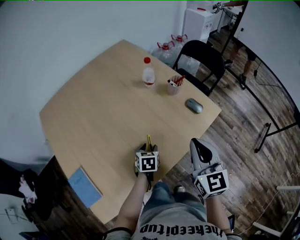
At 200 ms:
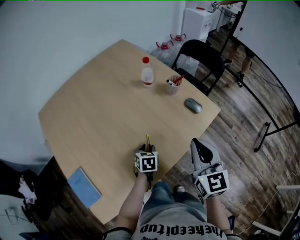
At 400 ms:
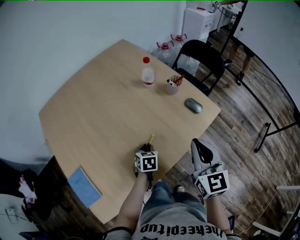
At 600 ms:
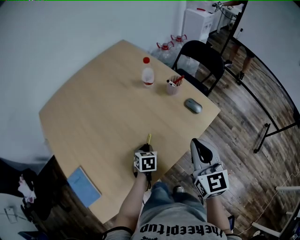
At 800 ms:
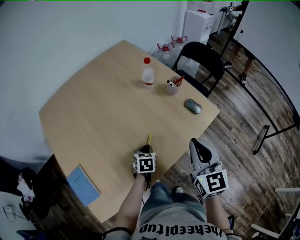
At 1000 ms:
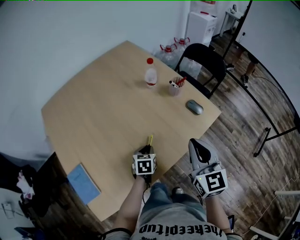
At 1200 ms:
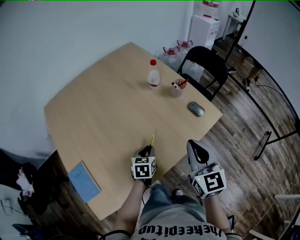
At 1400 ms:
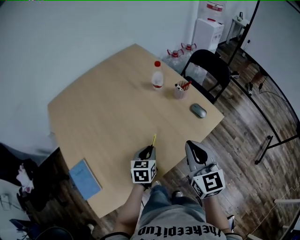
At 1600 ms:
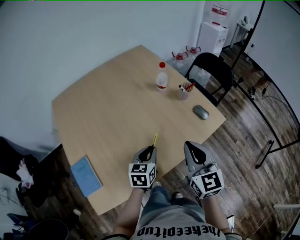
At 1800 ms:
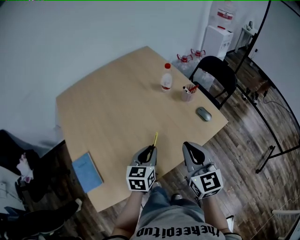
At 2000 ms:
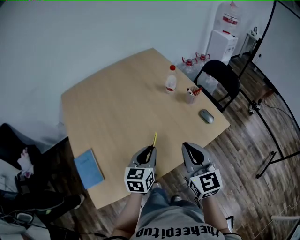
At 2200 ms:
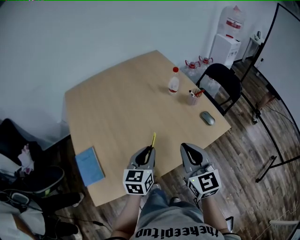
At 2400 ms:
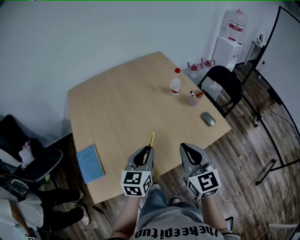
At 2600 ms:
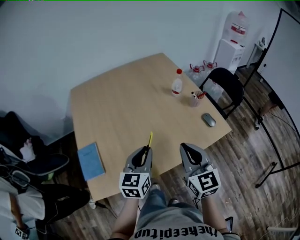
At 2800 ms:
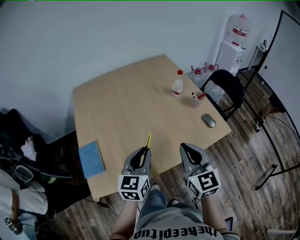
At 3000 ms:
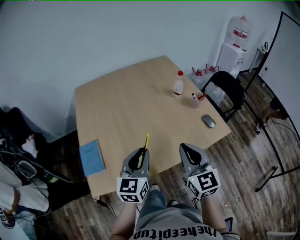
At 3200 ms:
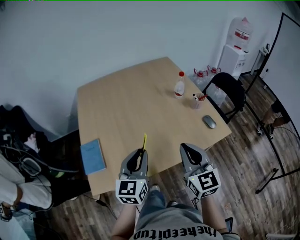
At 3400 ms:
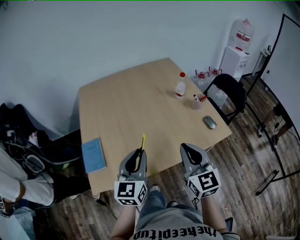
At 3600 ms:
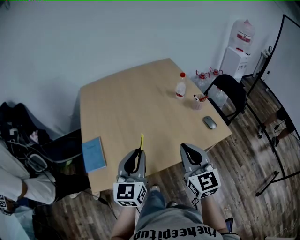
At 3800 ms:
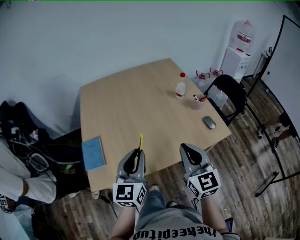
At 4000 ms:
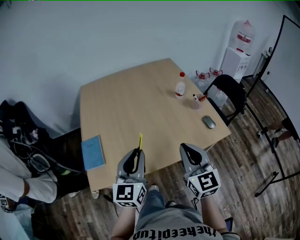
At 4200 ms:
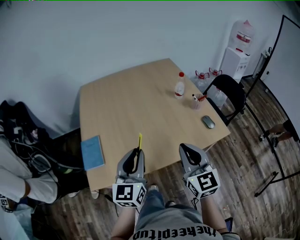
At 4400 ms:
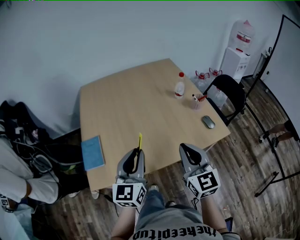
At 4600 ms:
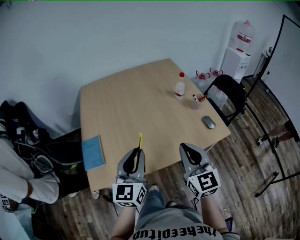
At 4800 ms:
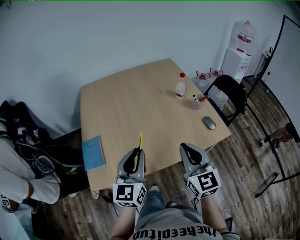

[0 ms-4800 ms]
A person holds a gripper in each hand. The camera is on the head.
0 ms to 1600 ms: The left gripper goes some 15 cm upward and backward, rotates some 20 degrees, and closes.
1600 ms to 3200 ms: The right gripper changes place by some 5 cm; the left gripper travels upward, backward and to the left by some 20 cm, and turns by roughly 30 degrees.
3200 ms to 4800 ms: The grippers make only small movements.

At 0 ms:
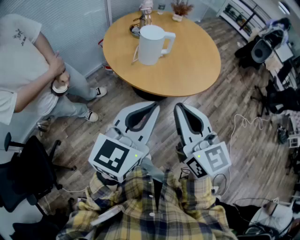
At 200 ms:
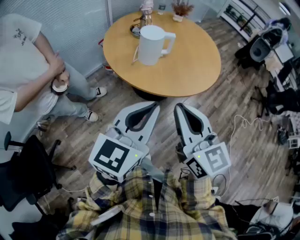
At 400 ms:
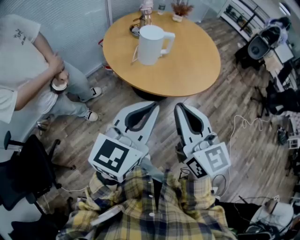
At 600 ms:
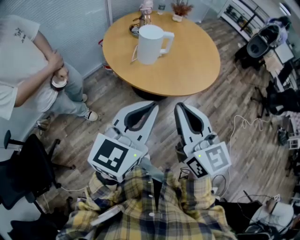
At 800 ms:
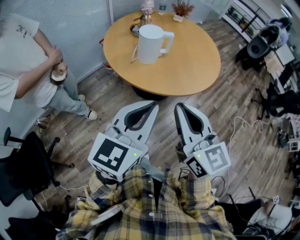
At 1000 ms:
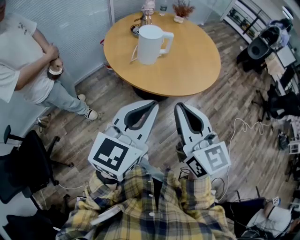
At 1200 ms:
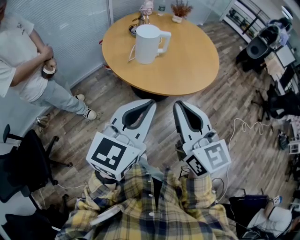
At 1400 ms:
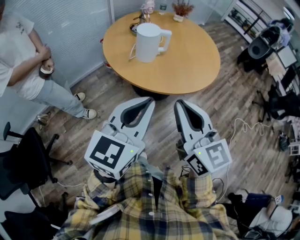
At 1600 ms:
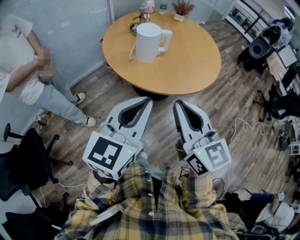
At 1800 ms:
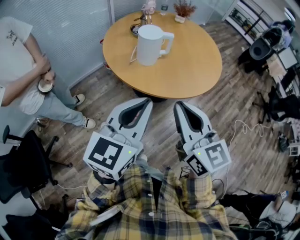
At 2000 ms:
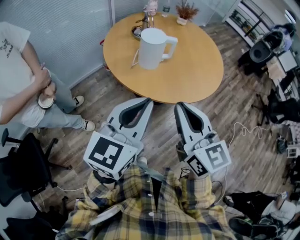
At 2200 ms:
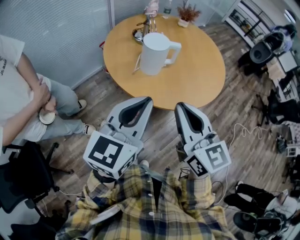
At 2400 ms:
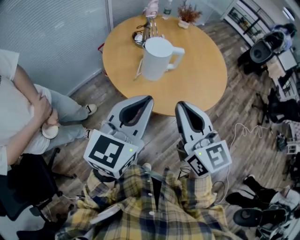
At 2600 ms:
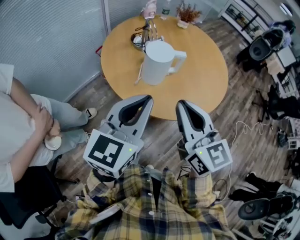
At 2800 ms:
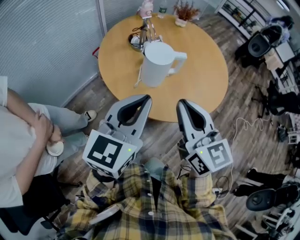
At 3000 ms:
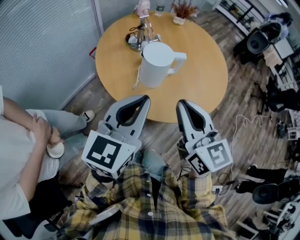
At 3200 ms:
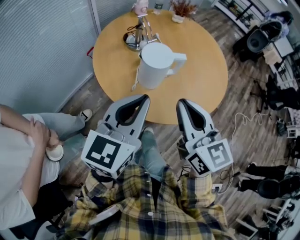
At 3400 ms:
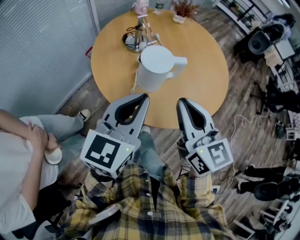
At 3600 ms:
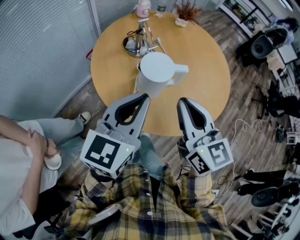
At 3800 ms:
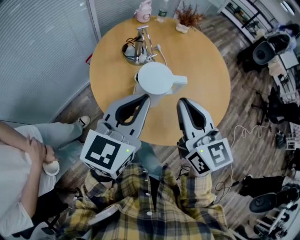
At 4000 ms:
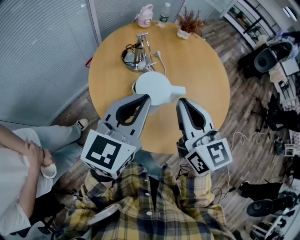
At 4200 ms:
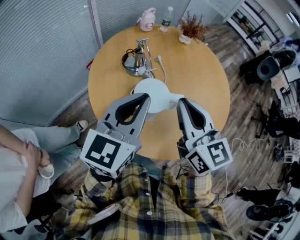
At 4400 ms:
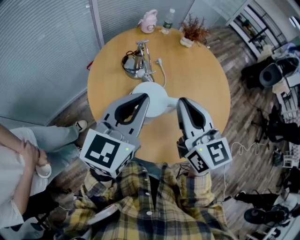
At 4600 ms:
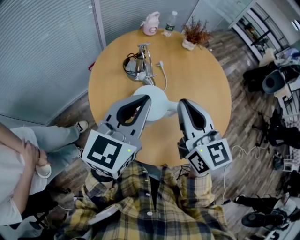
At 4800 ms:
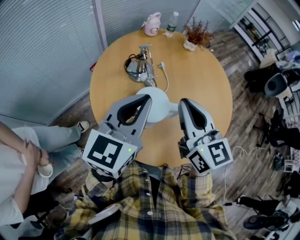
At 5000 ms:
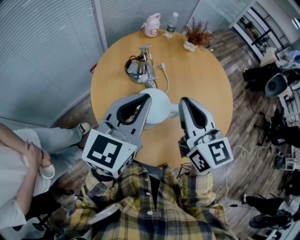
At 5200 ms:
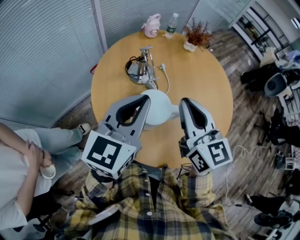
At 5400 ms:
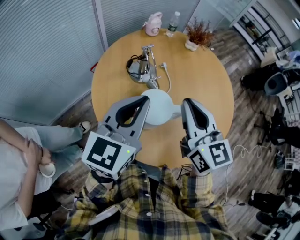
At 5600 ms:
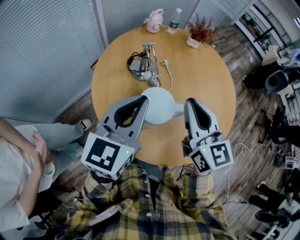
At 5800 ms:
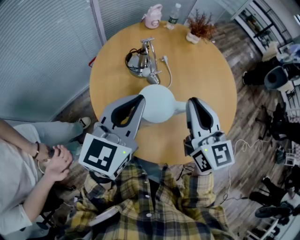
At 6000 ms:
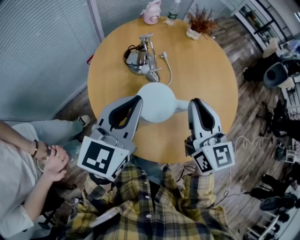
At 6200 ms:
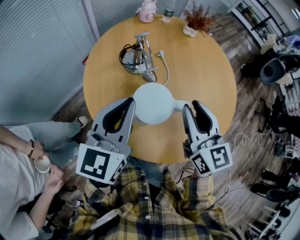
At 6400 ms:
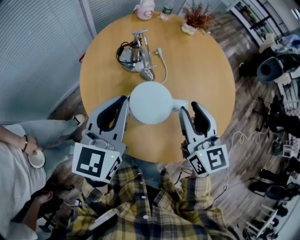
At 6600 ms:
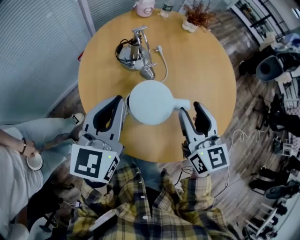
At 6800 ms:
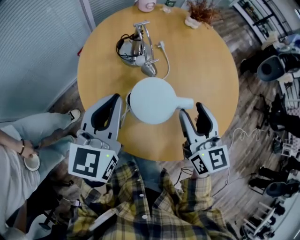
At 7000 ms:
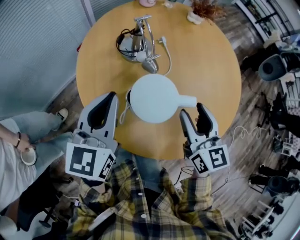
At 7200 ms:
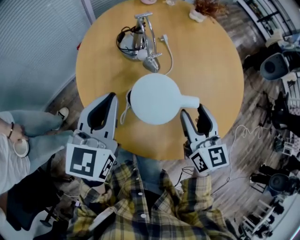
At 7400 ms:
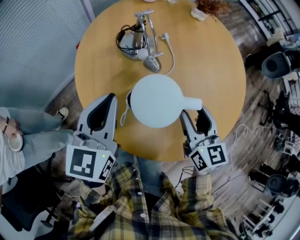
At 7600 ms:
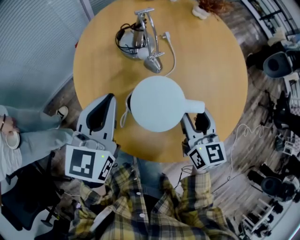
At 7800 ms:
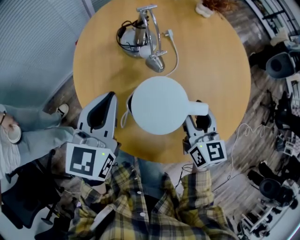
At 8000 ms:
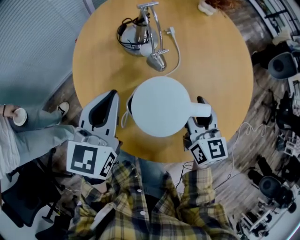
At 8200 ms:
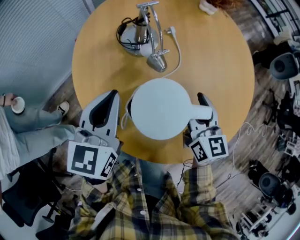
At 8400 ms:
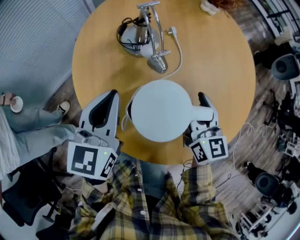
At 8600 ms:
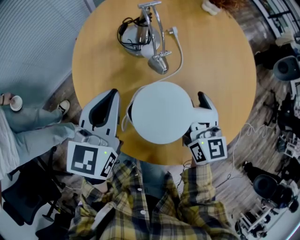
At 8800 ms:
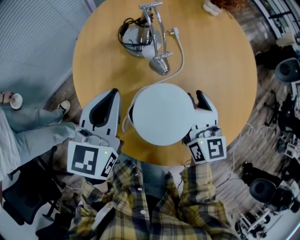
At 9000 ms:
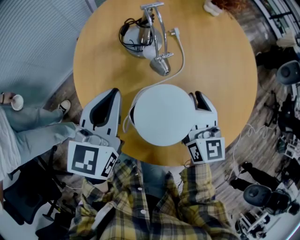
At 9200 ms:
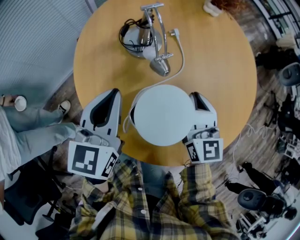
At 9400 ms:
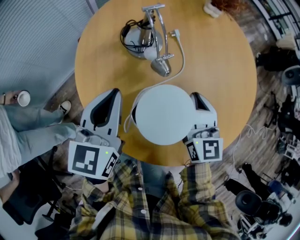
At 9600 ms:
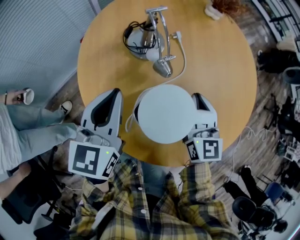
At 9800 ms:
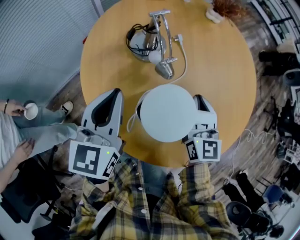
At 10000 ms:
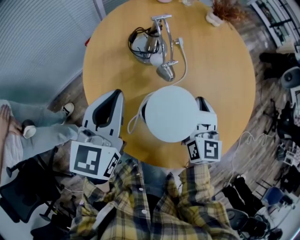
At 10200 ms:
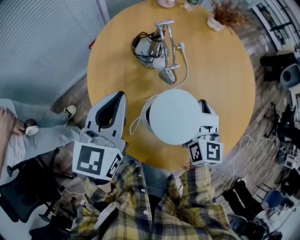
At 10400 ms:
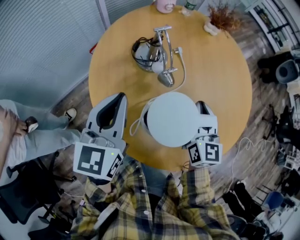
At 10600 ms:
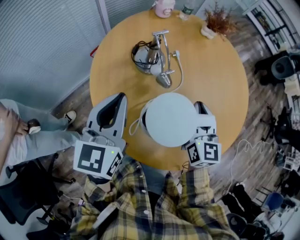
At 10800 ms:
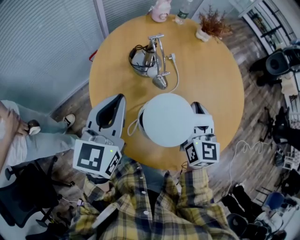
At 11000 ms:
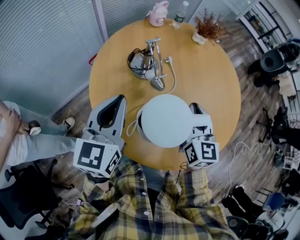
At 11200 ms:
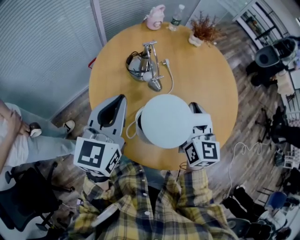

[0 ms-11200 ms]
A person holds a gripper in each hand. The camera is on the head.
0 ms to 1600 ms: The grippers stay close to where they were, moving slightly.
1600 ms to 3200 ms: The right gripper moves forward, roughly 20 cm, while the left gripper moves forward and to the left, some 25 cm.
3200 ms to 4800 ms: Both grippers move forward, some 20 cm.
4800 ms to 6400 ms: The right gripper moves downward, about 10 cm, and opens its fingers. Meanwhile the left gripper is displaced downward and to the left by about 10 cm.
6400 ms to 8000 ms: Both grippers move downward, approximately 10 cm. The right gripper opens up.
8000 ms to 9600 ms: The right gripper closes its fingers.
9600 ms to 11200 ms: Both grippers move upward, approximately 10 cm.

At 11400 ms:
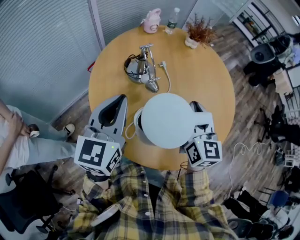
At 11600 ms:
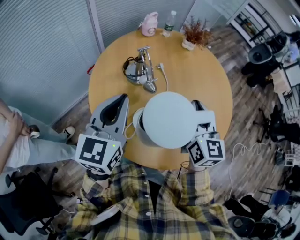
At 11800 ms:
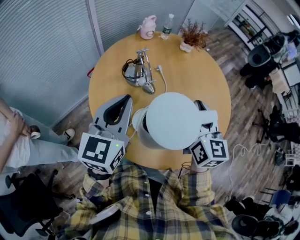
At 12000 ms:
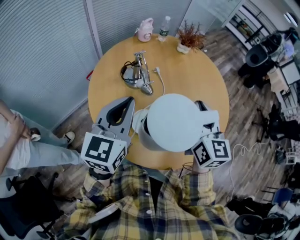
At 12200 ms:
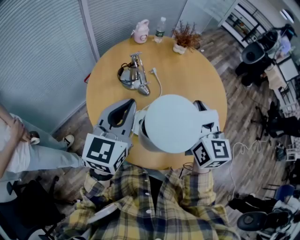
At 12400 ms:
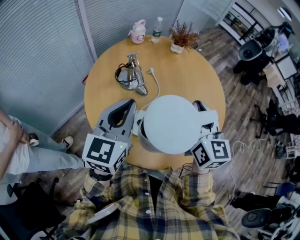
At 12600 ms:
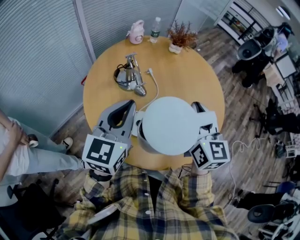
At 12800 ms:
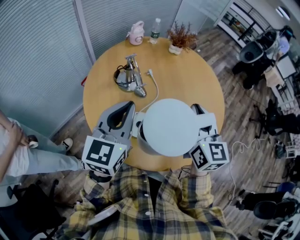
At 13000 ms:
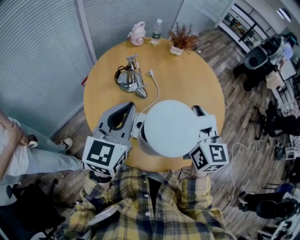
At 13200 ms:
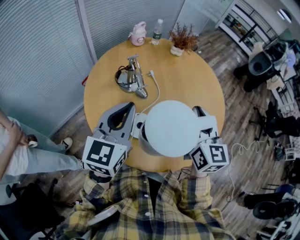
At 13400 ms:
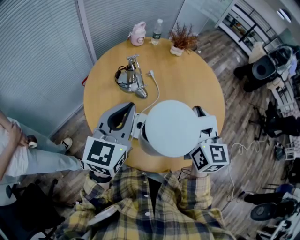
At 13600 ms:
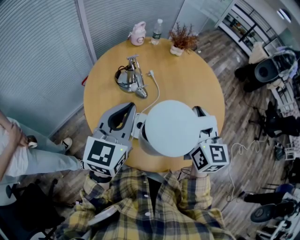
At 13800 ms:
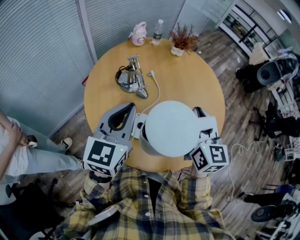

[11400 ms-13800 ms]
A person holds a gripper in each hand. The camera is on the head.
11400 ms to 12600 ms: The left gripper shifts approximately 5 cm to the right, while the right gripper travels upward by roughly 5 cm.
12600 ms to 13800 ms: Neither gripper changes place.

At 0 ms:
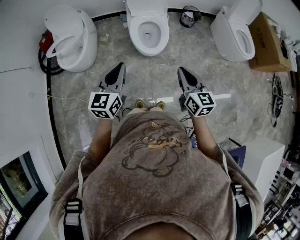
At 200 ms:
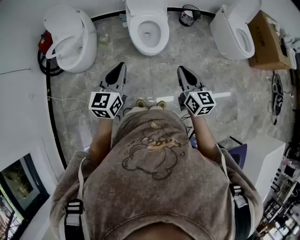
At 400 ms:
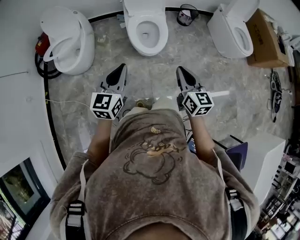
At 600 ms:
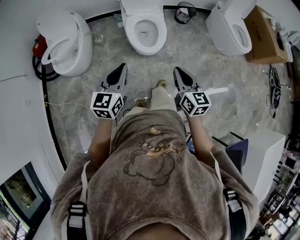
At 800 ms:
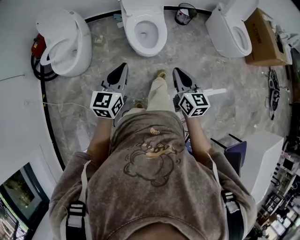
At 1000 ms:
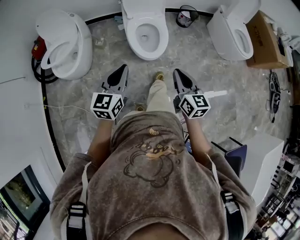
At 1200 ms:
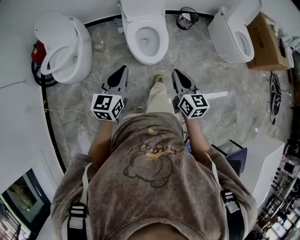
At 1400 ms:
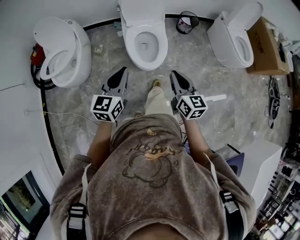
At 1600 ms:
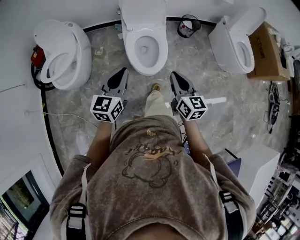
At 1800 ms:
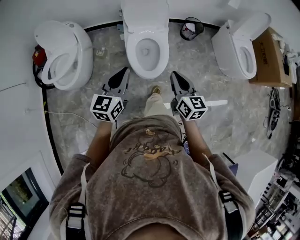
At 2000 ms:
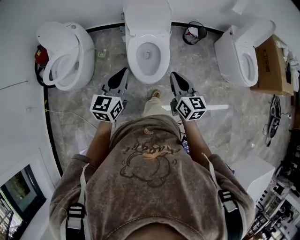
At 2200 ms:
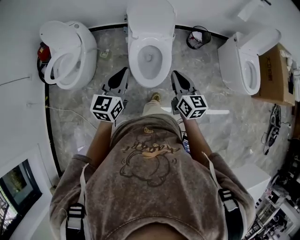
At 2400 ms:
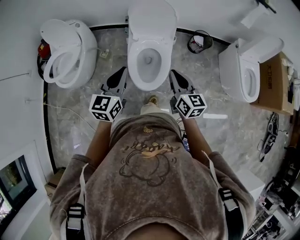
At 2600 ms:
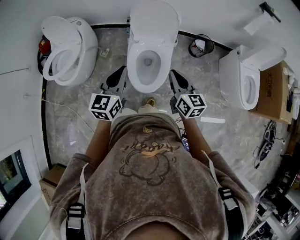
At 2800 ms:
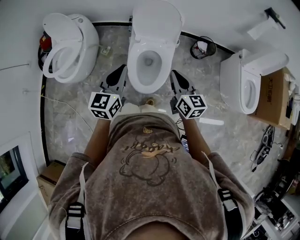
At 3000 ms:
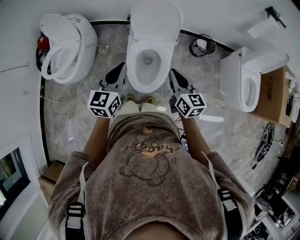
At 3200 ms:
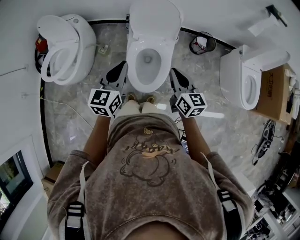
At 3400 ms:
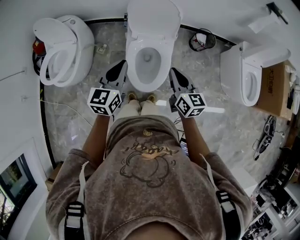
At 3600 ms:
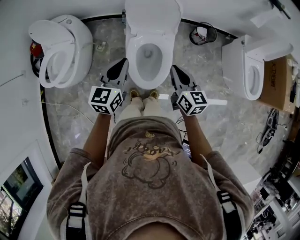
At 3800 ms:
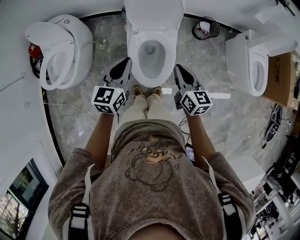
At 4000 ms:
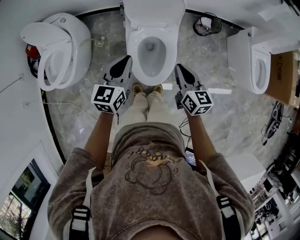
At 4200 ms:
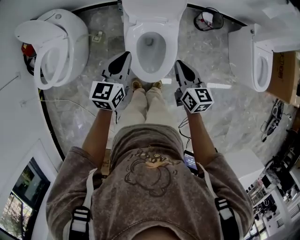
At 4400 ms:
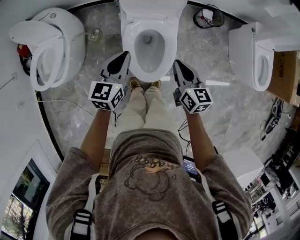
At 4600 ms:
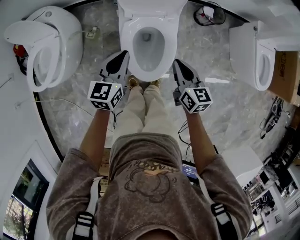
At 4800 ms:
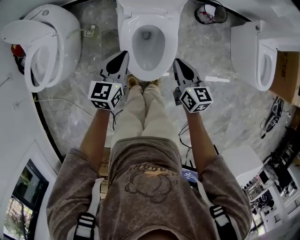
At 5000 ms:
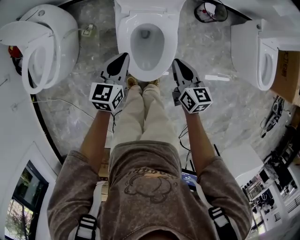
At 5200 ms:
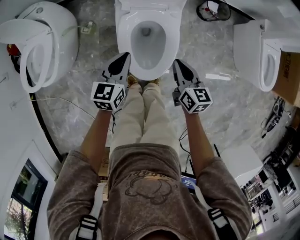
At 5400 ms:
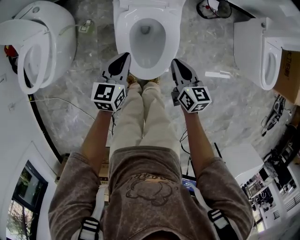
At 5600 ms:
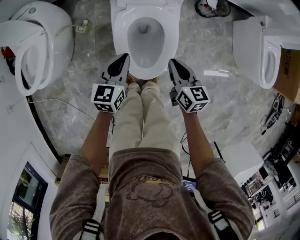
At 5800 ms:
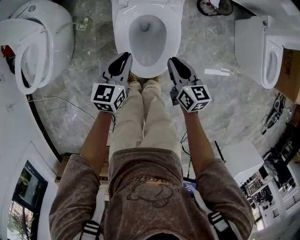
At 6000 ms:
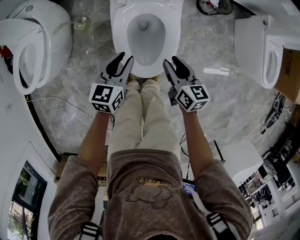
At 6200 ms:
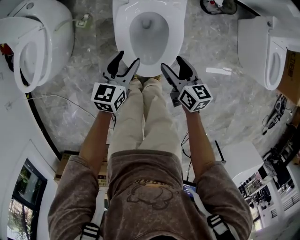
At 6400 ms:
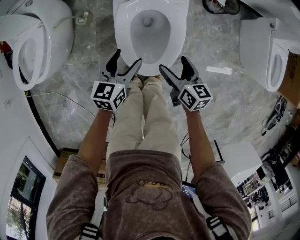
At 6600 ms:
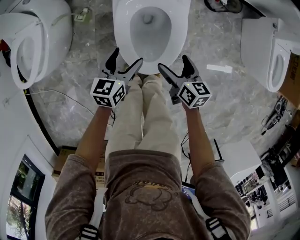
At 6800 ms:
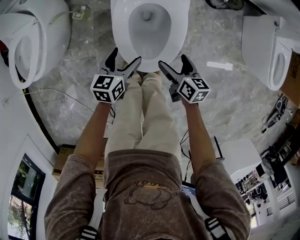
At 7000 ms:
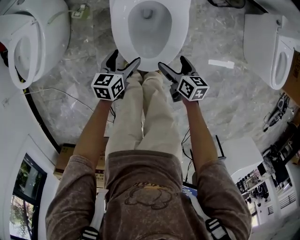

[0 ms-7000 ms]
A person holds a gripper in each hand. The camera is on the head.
0 ms to 1400 ms: The two grippers go approximately 10 cm forward.
1400 ms to 2800 ms: The two grippers go approximately 20 cm forward.
2800 ms to 4200 ms: Both grippers travel together downward and forward, approximately 15 cm.
4200 ms to 5600 ms: Both grippers travel together downward, roughly 15 cm.
5600 ms to 7000 ms: Both grippers move downward, some 15 cm. The left gripper opens up, while the right gripper opens its fingers.
